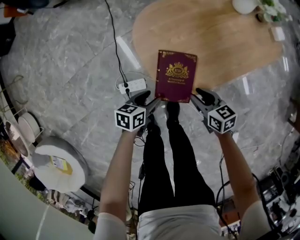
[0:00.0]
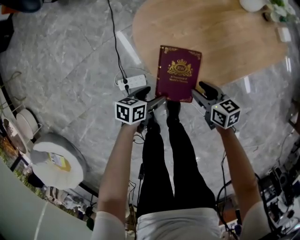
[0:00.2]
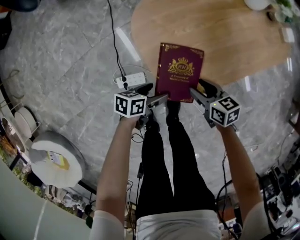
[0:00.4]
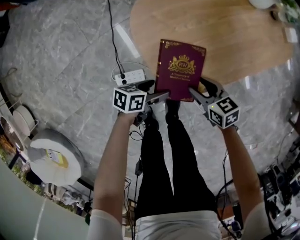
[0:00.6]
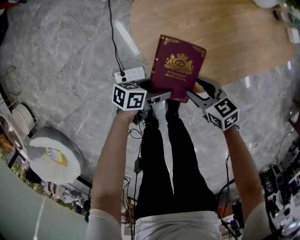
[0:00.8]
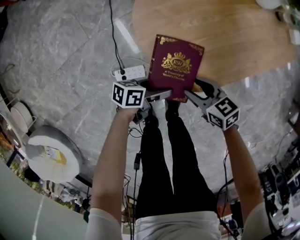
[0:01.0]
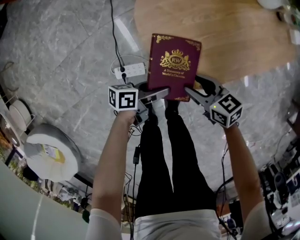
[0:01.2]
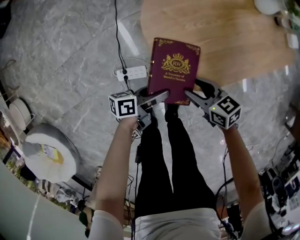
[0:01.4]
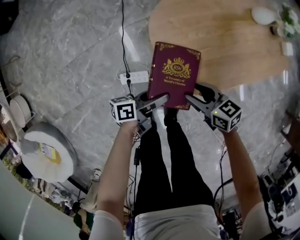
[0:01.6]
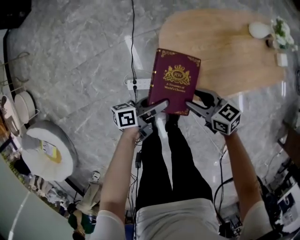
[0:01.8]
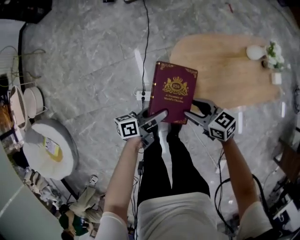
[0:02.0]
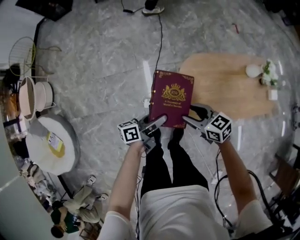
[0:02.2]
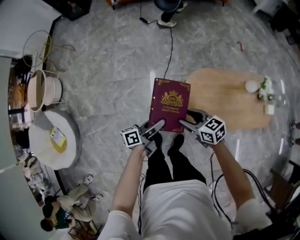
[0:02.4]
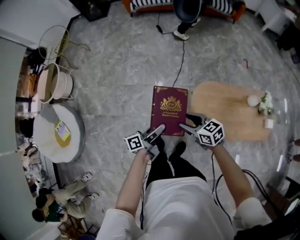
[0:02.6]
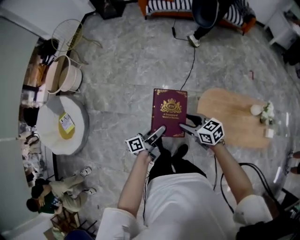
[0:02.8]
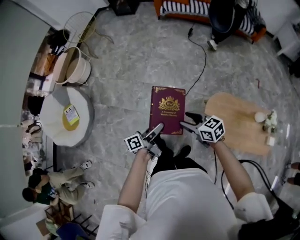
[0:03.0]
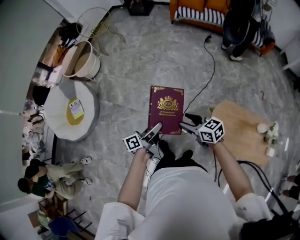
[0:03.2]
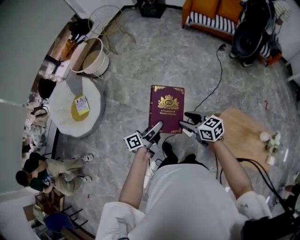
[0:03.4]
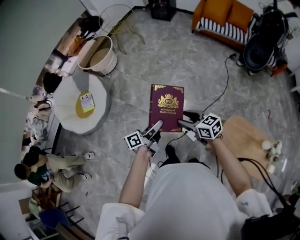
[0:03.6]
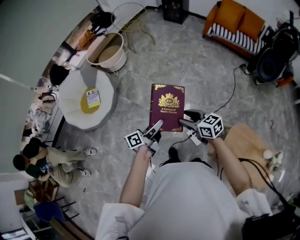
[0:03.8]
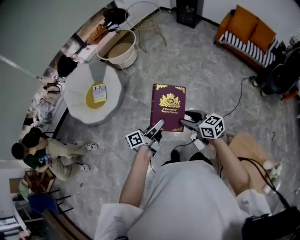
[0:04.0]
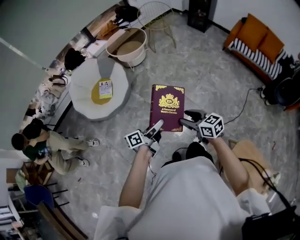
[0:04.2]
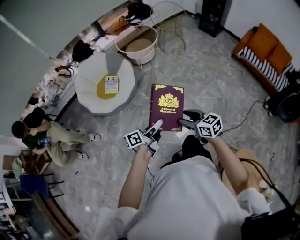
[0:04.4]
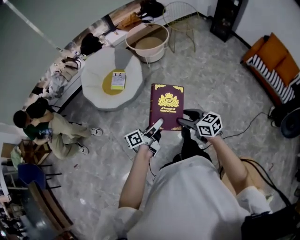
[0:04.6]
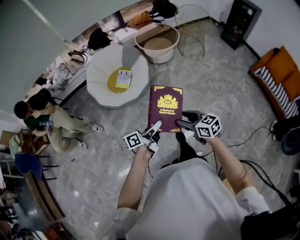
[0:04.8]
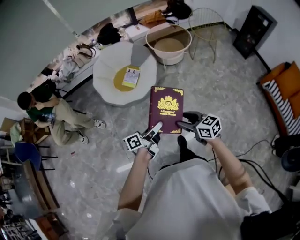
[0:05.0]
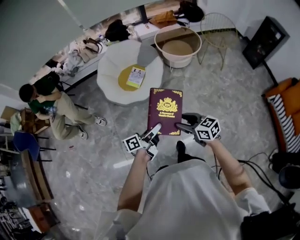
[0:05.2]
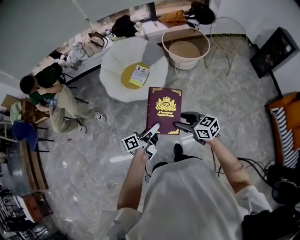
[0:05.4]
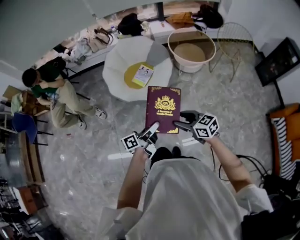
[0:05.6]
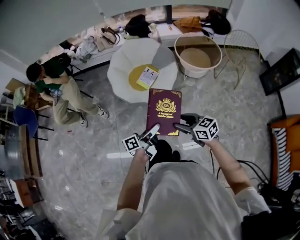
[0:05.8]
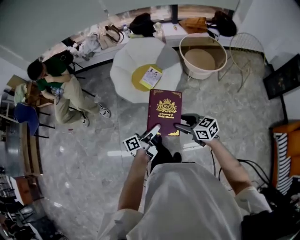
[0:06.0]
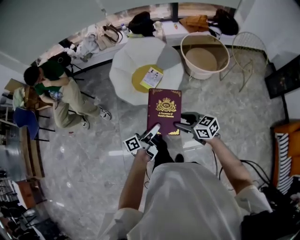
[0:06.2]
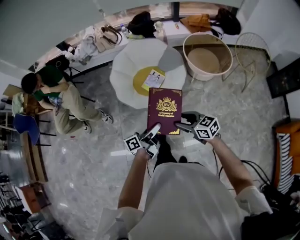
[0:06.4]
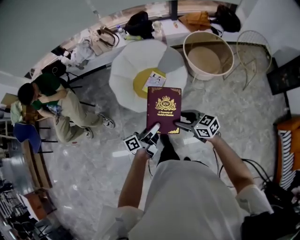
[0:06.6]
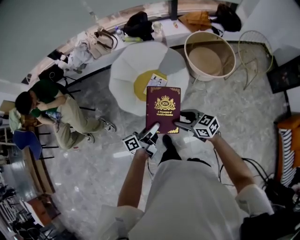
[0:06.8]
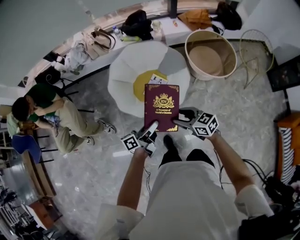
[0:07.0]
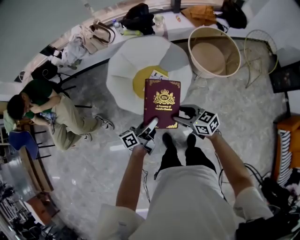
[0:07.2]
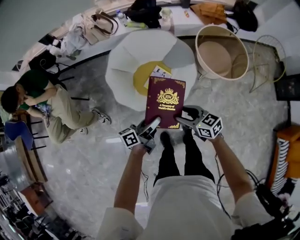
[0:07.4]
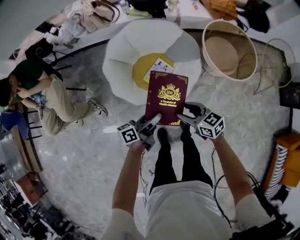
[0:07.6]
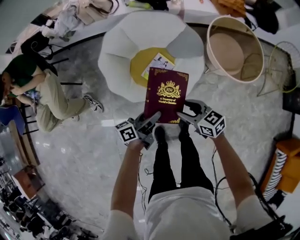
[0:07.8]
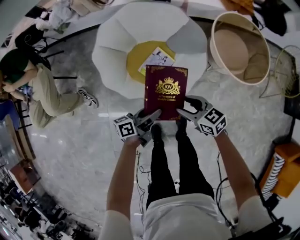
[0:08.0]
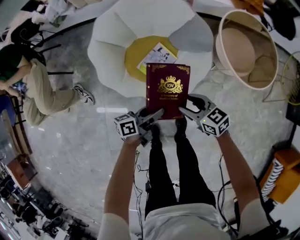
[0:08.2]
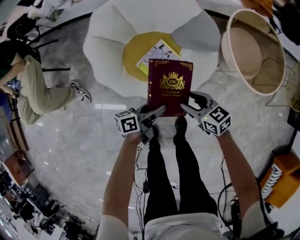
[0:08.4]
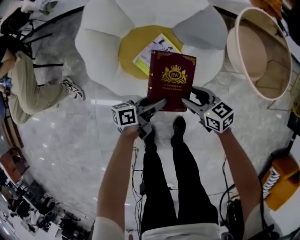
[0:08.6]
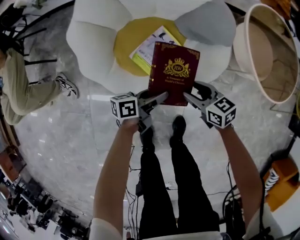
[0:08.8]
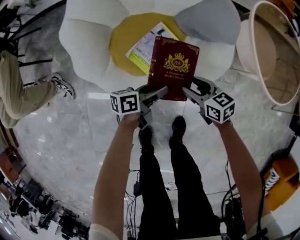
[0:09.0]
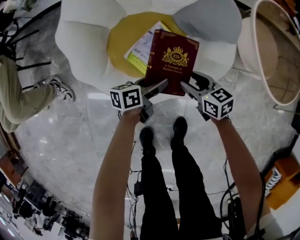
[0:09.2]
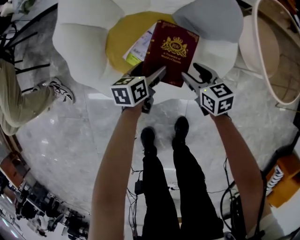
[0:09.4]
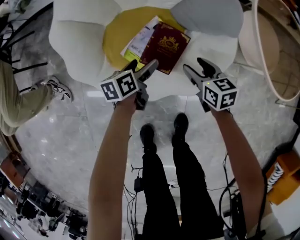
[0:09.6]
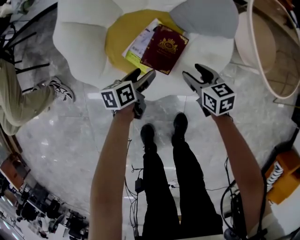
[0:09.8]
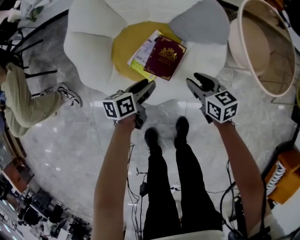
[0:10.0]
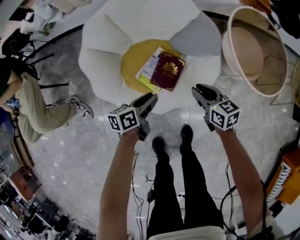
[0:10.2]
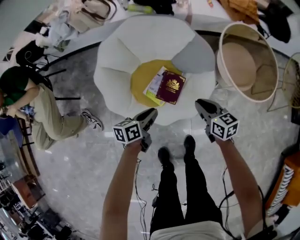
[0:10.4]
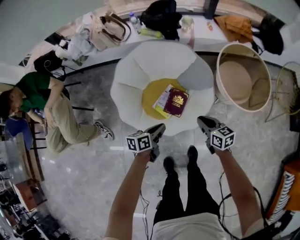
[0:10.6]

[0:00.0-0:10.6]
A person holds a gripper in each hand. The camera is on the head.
0:00.0 to 0:01.6: The right gripper moves approximately 5 cm downward and comes back, while the left gripper turns by about 40 degrees.
0:01.6 to 0:03.0: The grippers both shift upward by approximately 35 cm. The left gripper rotates approximately 60 degrees, while the right gripper swivels about 40 degrees.
0:03.0 to 0:04.6: The pair of grippers is taken approximately 50 cm. The left gripper swivels about 40 degrees. The right gripper rotates about 40 degrees.
0:04.6 to 0:06.0: The right gripper changes place by some 30 cm, and rotates about 40 degrees; the left gripper shifts by approximately 25 cm, and turns by about 30 degrees.
0:06.0 to 0:07.6: Both grippers are carried forward, some 40 cm.
0:07.6 to 0:09.0: Both grippers move downward, roughly 40 cm.
0:09.0 to 0:10.6: The grippers both shift upward by approximately 30 cm. The left gripper closes its fingers, while the right gripper closes.

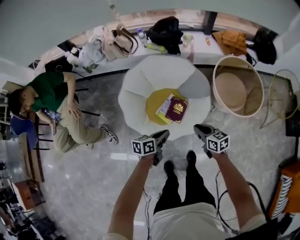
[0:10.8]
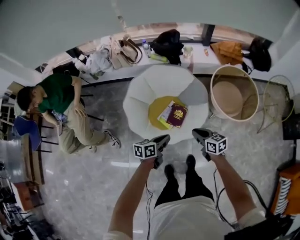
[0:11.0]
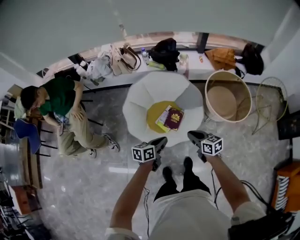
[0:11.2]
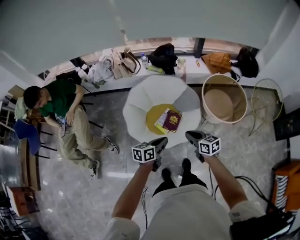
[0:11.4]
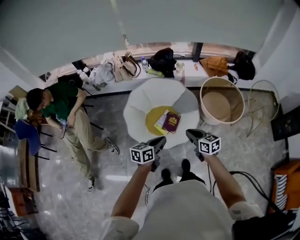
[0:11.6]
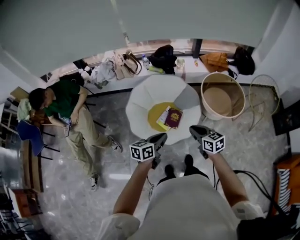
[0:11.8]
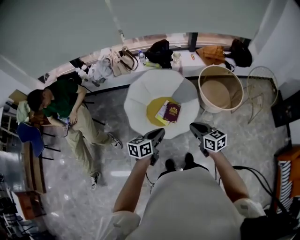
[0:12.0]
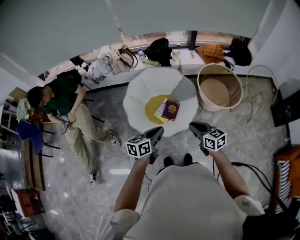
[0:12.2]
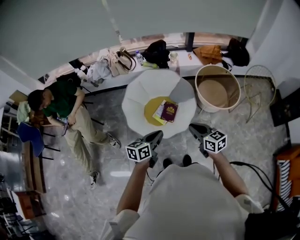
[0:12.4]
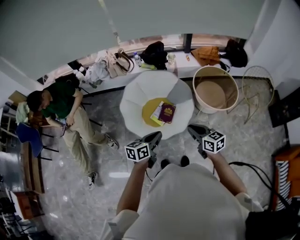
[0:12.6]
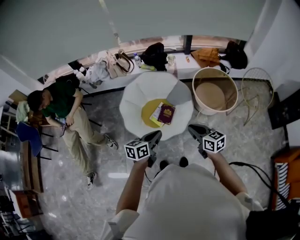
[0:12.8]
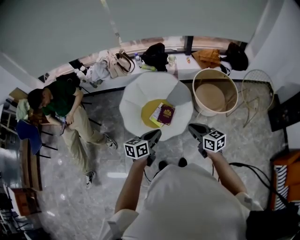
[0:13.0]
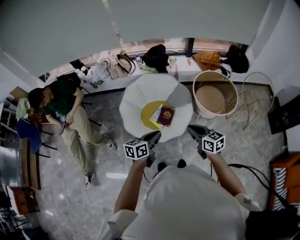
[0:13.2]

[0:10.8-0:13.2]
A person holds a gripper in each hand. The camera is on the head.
0:10.8 to 0:12.0: The grippers both shift upward and backward by about 30 cm.
0:12.0 to 0:13.2: The right gripper goes approximately 5 cm to the right. Meanwhile the left gripper ends up about 5 cm from where it was.

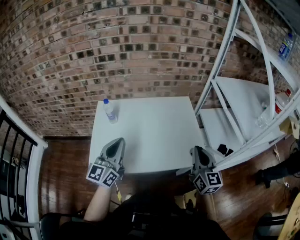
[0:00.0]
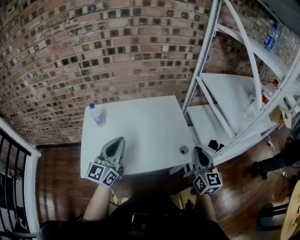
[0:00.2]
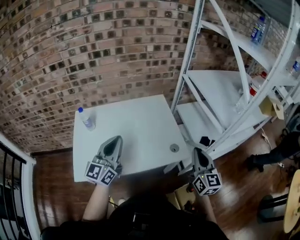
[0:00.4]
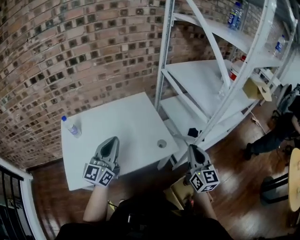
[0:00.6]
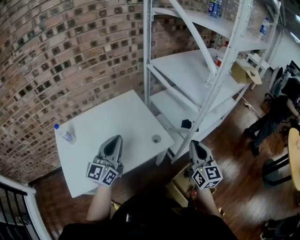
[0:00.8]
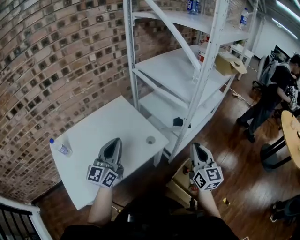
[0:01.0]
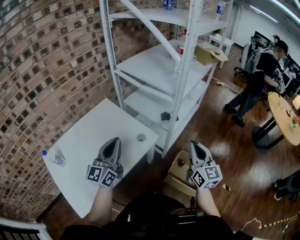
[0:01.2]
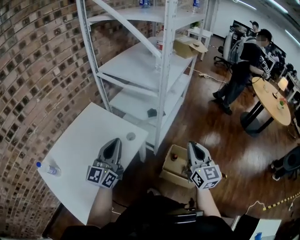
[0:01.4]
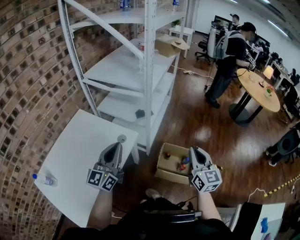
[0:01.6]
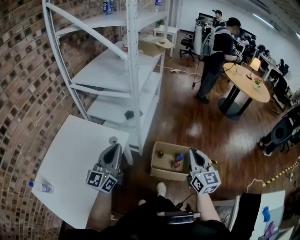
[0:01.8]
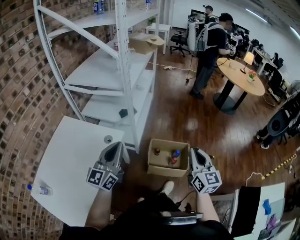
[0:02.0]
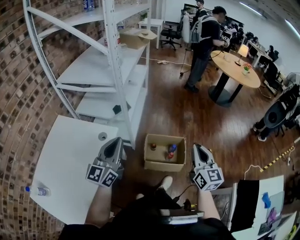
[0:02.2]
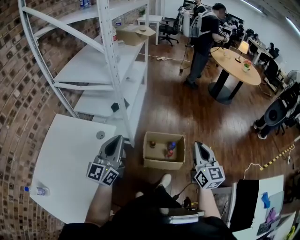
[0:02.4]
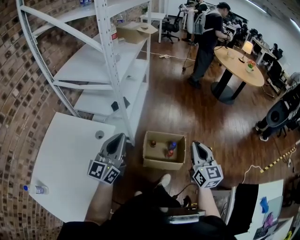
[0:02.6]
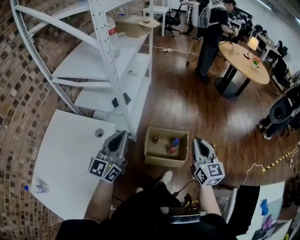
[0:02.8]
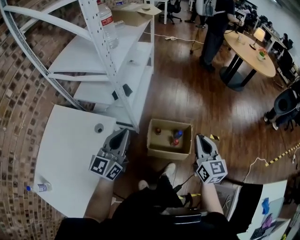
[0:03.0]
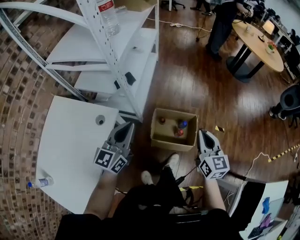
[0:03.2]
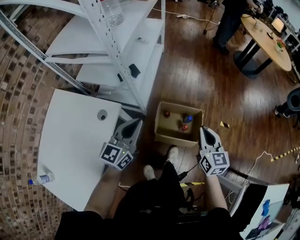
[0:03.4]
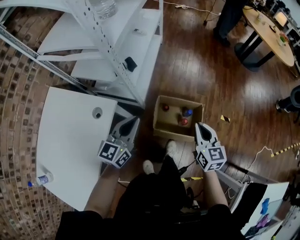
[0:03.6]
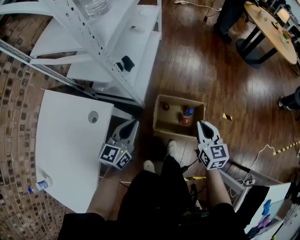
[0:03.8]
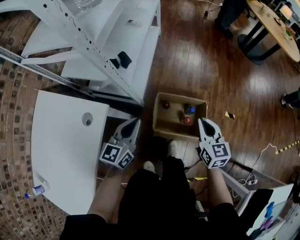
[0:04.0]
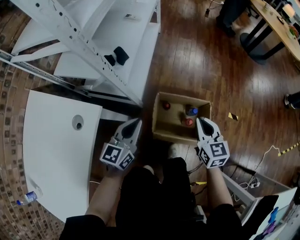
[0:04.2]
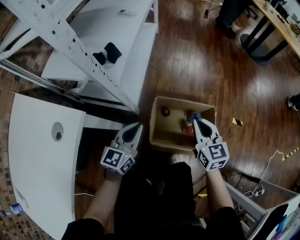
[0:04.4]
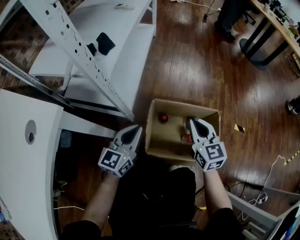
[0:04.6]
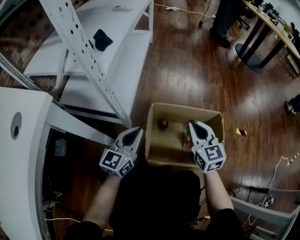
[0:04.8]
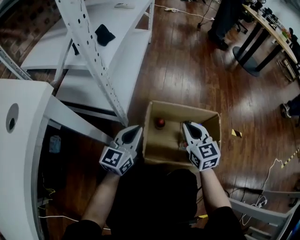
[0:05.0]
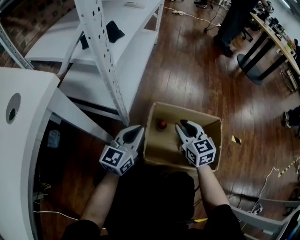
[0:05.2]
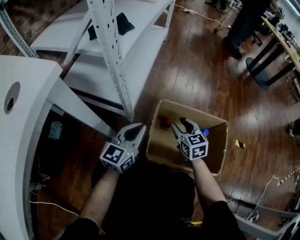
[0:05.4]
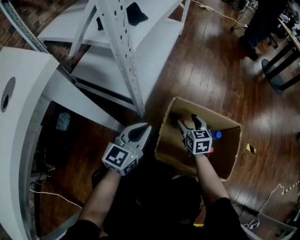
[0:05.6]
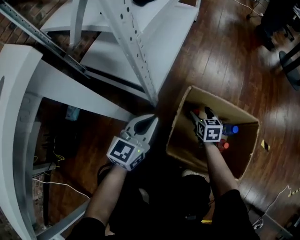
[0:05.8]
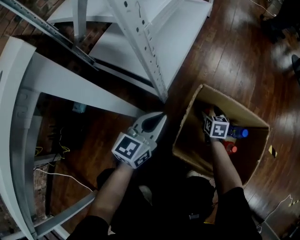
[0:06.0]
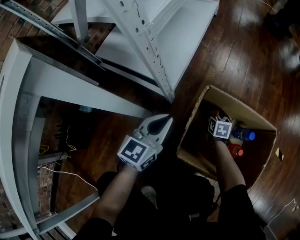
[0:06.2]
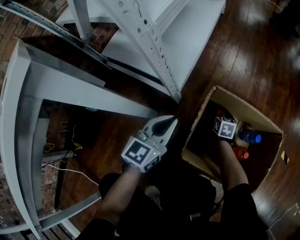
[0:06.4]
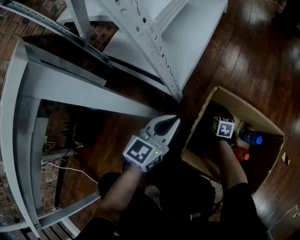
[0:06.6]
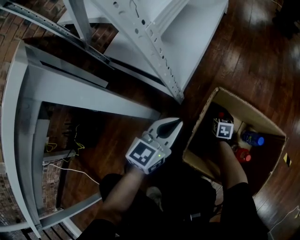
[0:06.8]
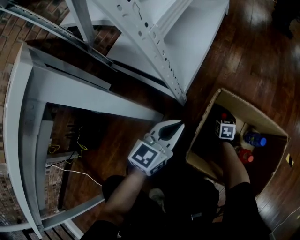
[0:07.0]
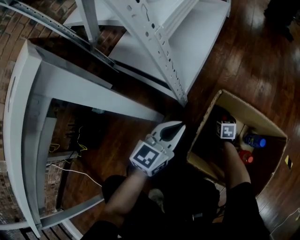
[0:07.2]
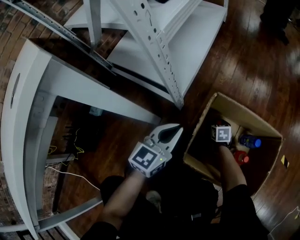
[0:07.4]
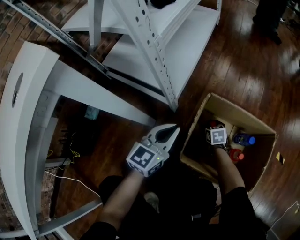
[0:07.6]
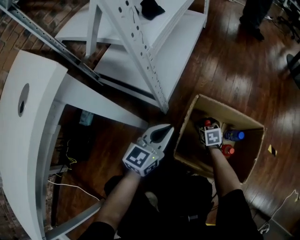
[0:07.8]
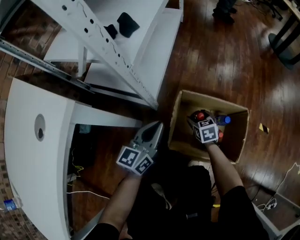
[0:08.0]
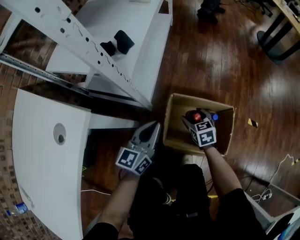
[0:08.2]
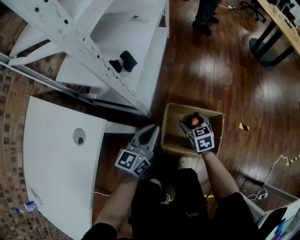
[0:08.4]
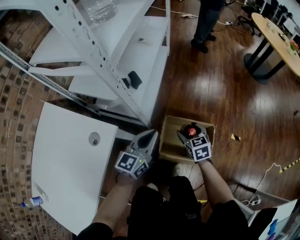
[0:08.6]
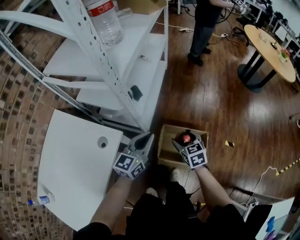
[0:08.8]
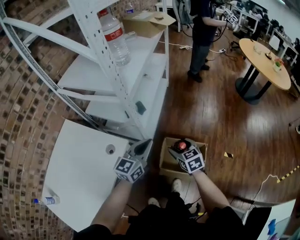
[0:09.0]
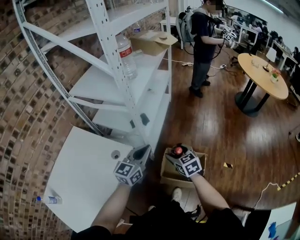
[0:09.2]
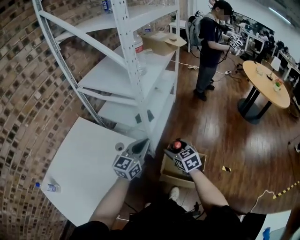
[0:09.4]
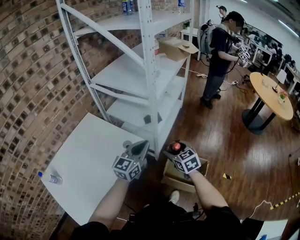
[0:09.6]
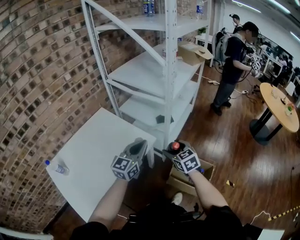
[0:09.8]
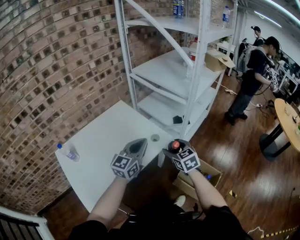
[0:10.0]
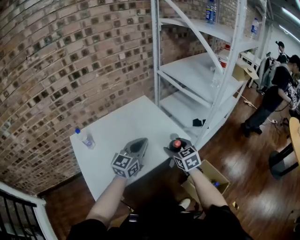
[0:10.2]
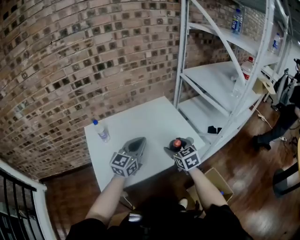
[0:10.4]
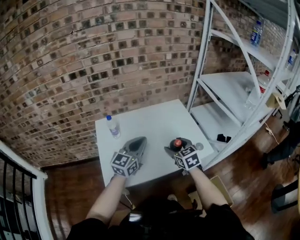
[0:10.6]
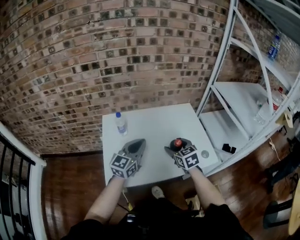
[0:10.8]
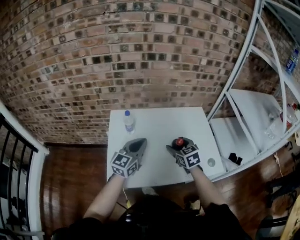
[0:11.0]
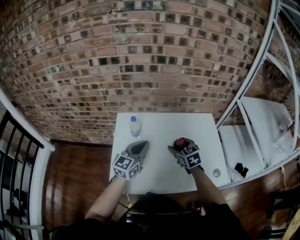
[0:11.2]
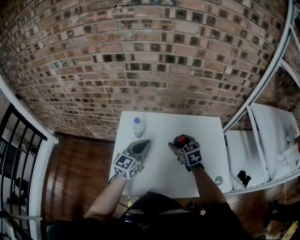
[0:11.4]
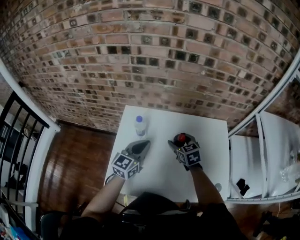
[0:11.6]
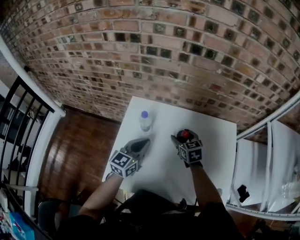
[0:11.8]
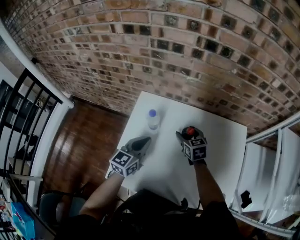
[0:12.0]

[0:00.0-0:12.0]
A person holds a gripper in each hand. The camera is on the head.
0:00.0 to 0:01.6: The left gripper changes place by approximately 30 cm, and changes its angle by some 60 degrees; the right gripper ends up approximately 35 cm from where it was, and swivels about 60 degrees.
0:01.6 to 0:03.0: The right gripper heads to the right and downward, covering roughly 15 cm. The left gripper travels to the right and forward by approximately 20 cm.
0:03.0 to 0:04.4: The left gripper heads downward, covering some 40 cm. Meanwhile the right gripper goes about 40 cm downward and forward.
0:04.4 to 0:06.0: The left gripper heads downward, covering roughly 25 cm. Meanwhile the right gripper moves downward, some 50 cm, changes its angle by some 20 degrees, and opens.
0:06.0 to 0:07.6: The right gripper travels downward by about 5 cm.
0:07.6 to 0:09.0: The grippers both shift upward by about 70 cm. The right gripper turns by approximately 20 degrees.
0:09.0 to 0:10.4: The pair of grippers is taken about 50 cm. The right gripper swivels about 50 degrees, while the left gripper rotates about 50 degrees.
0:10.4 to 0:12.0: The left gripper shifts by some 30 cm, and swivels some 40 degrees. The right gripper shifts by roughly 40 cm, and turns by about 30 degrees.
